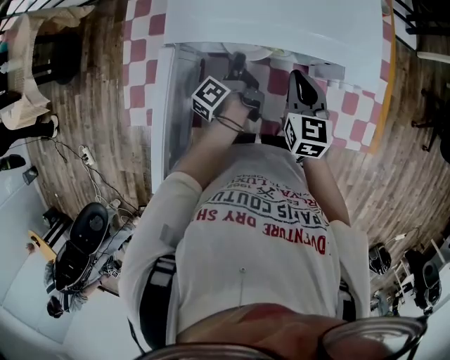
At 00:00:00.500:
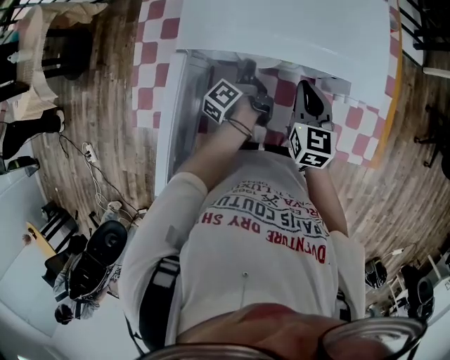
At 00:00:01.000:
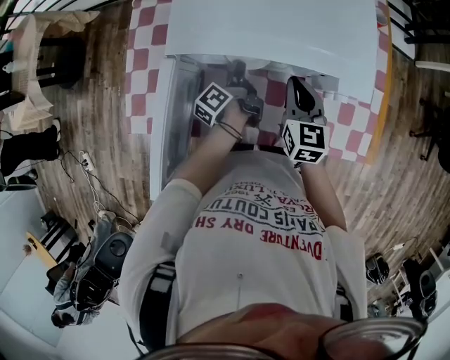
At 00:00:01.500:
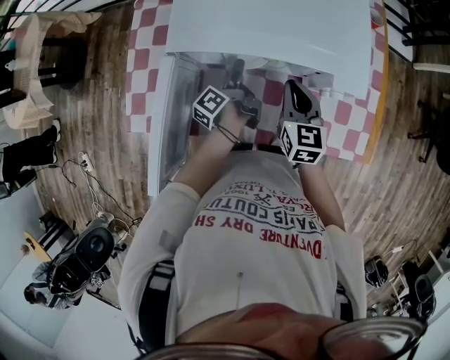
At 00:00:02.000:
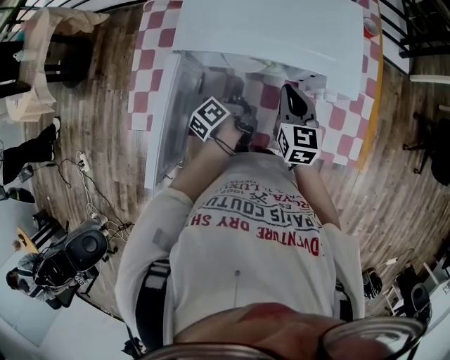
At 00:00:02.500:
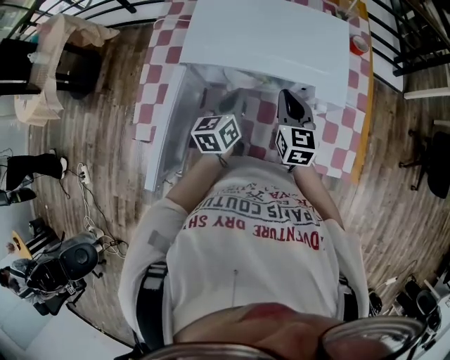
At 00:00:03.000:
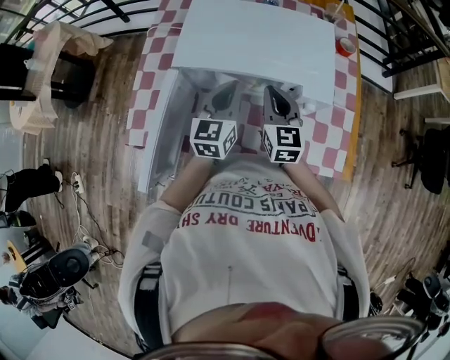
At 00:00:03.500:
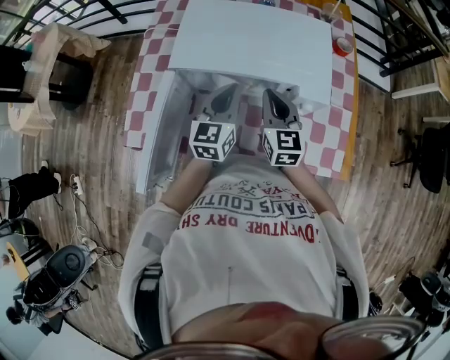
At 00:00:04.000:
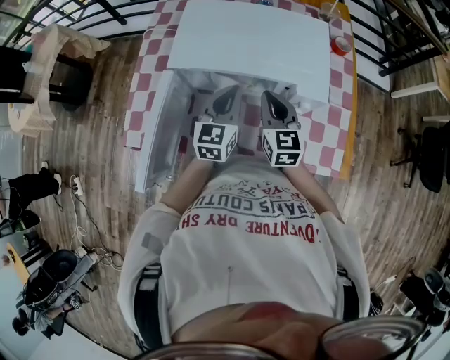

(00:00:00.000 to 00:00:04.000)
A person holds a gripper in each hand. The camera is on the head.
00:00:02.000 - 00:00:04.000: The right gripper travels upward by about 5 cm.

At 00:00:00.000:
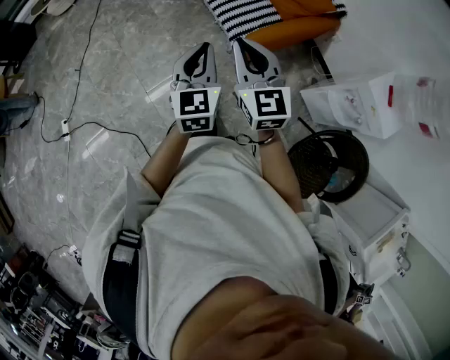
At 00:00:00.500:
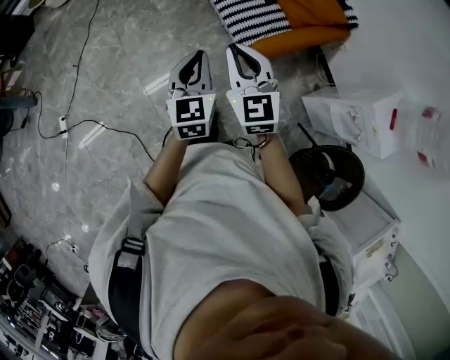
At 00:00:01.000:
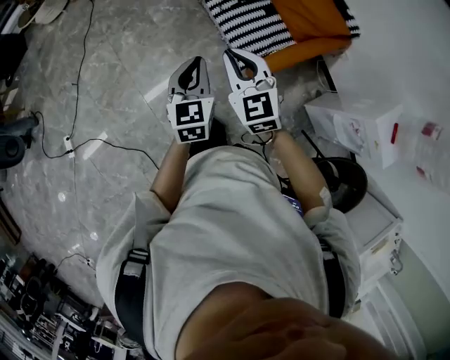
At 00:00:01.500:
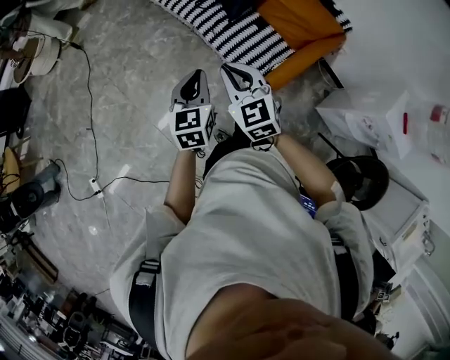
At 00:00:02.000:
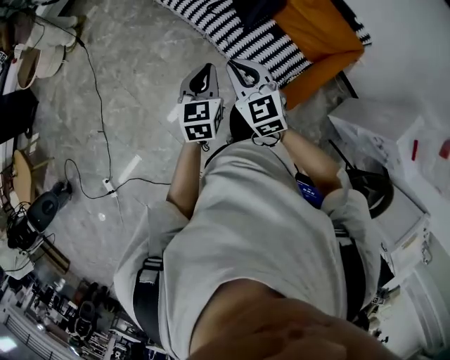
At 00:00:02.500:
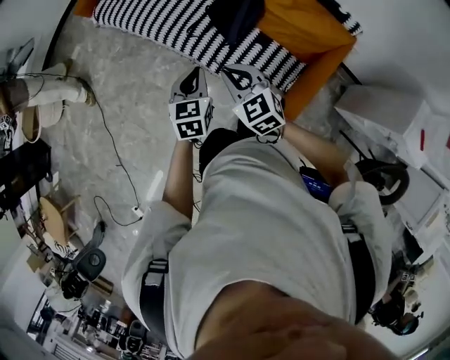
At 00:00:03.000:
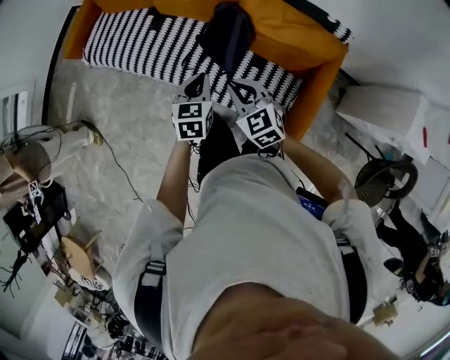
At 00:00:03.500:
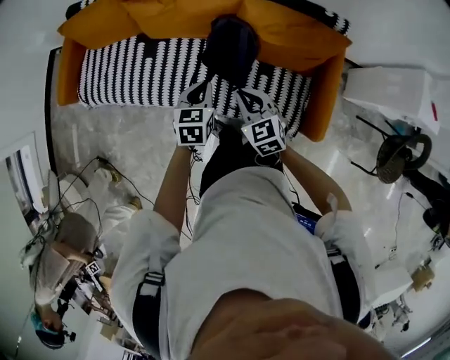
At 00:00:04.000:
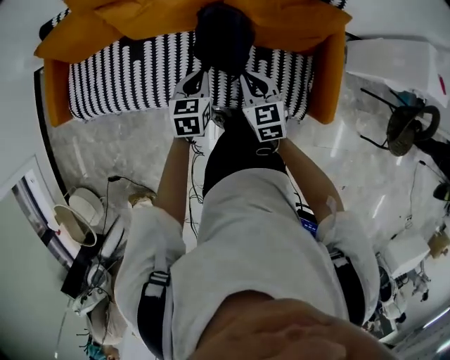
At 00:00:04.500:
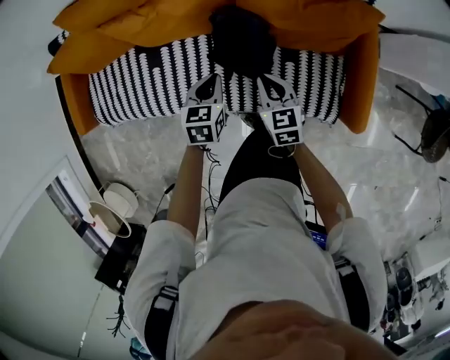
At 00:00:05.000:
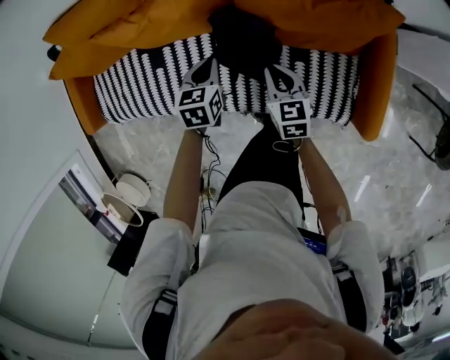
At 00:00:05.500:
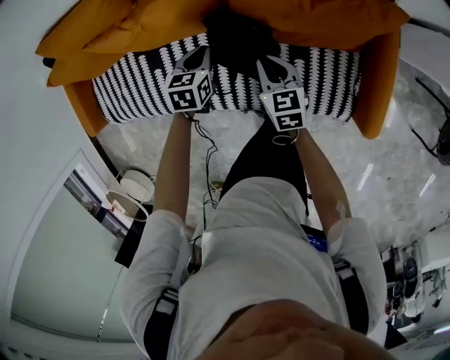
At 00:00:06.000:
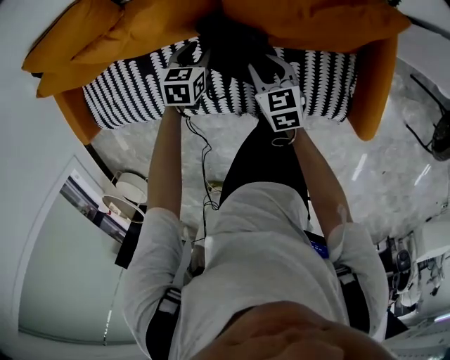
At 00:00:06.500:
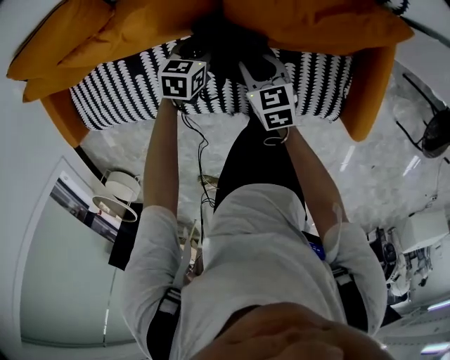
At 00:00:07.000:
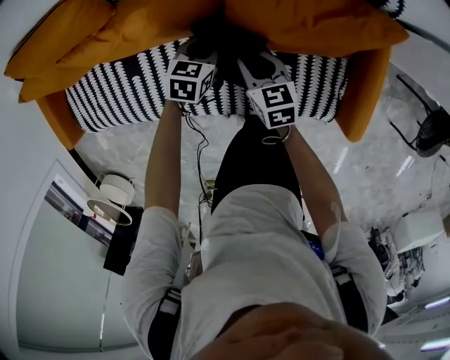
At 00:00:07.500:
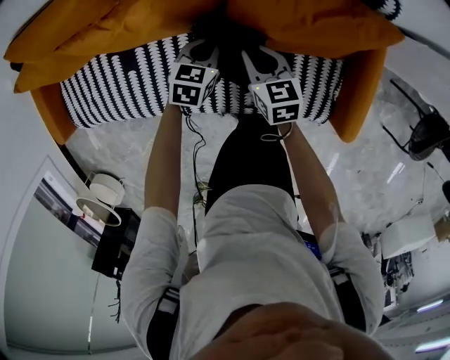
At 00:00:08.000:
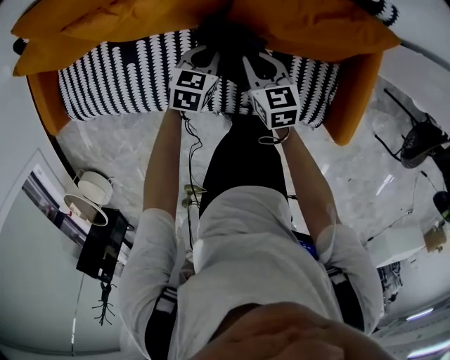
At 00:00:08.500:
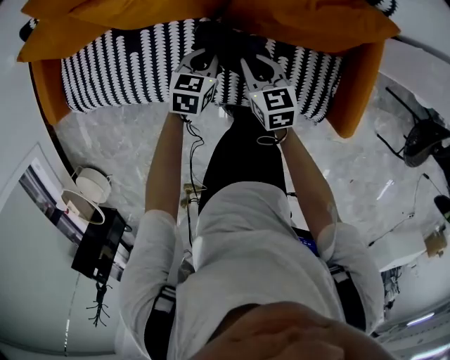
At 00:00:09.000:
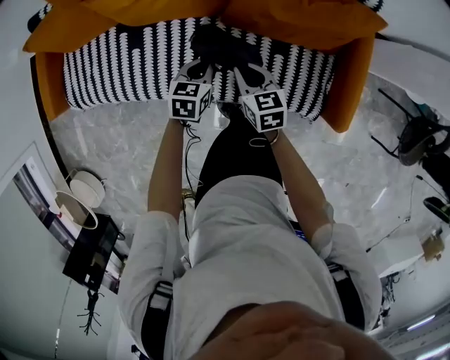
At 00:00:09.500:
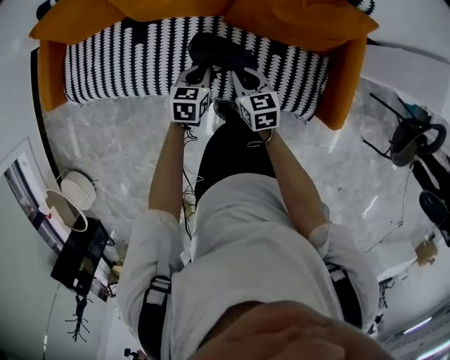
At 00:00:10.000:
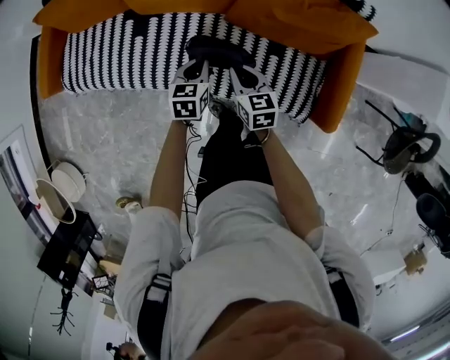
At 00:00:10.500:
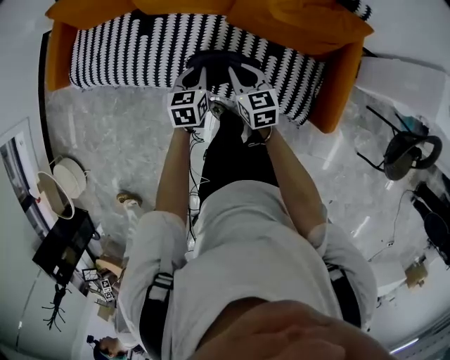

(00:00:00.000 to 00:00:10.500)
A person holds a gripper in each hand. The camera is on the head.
00:00:00.000 - 00:00:02.000: The two grippers travel together, forward, about 50 cm. The left gripper changes its angle by roughly 20 degrees.
00:00:02.000 - 00:00:04.000: The two grippers travel together, some 40 cm. The right gripper changes its angle by roughly 60 degrees. The left gripper rotates roughly 50 degrees.
00:00:04.000 - 00:00:06.500: The two grippers go about 35 cm forward and downward. The left gripper swivels some 20 degrees, and opens up. The right gripper turns by roughly 20 degrees, and opens its fingers.
00:00:06.500 - 00:00:08.500: Both grippers move backward and upward, approximately 15 cm. The left gripper closes.
00:00:08.500 - 00:00:10.500: Both grippers move backward and upward, roughly 20 cm. The left gripper rotates roughly 30 degrees.

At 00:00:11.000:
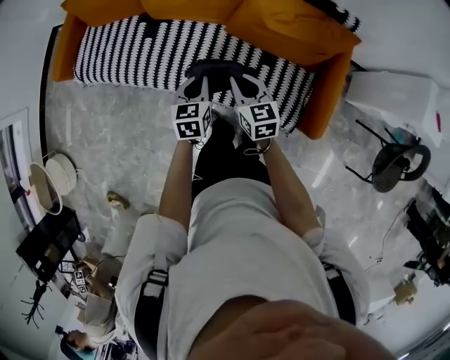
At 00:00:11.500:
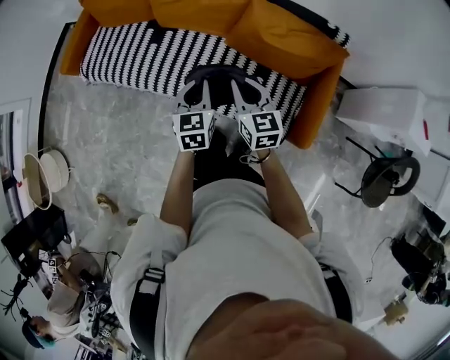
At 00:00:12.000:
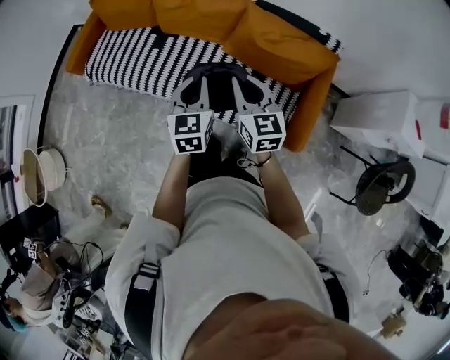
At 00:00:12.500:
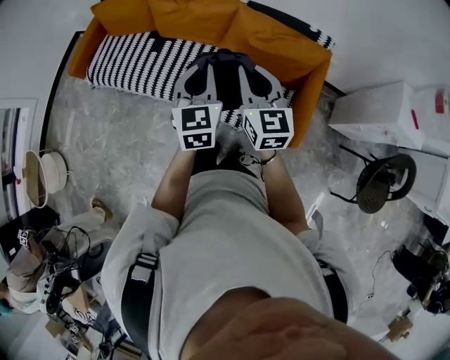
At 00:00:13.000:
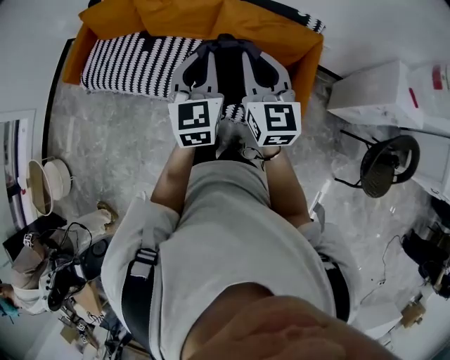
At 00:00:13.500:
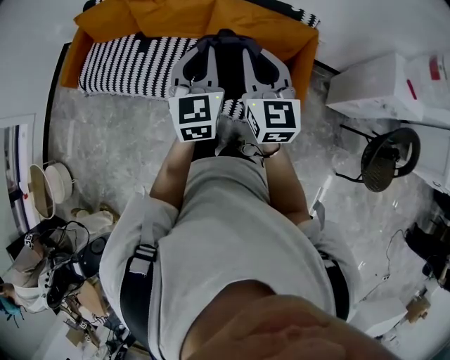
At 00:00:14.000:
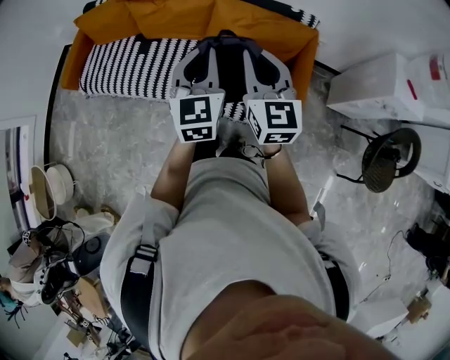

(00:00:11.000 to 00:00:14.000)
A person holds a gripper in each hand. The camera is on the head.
00:00:11.000 - 00:00:12.500: Both grippers move upward and backward, some 30 cm. The left gripper rotates roughly 30 degrees; the right gripper turns by approximately 20 degrees.
00:00:12.500 - 00:00:14.000: Both grippers travel together to the right, approximately 5 cm.

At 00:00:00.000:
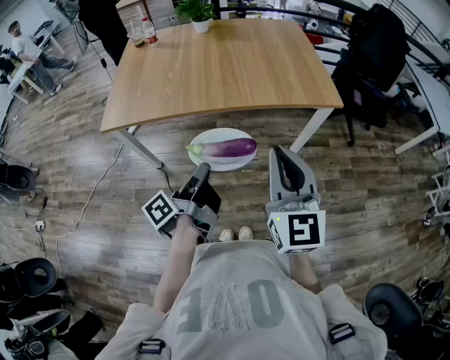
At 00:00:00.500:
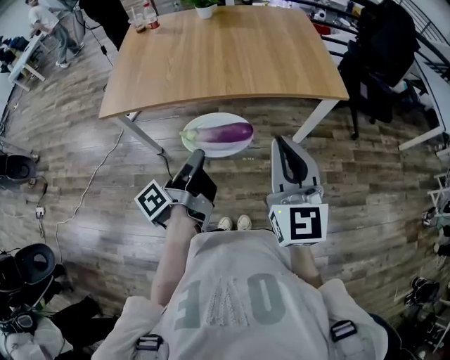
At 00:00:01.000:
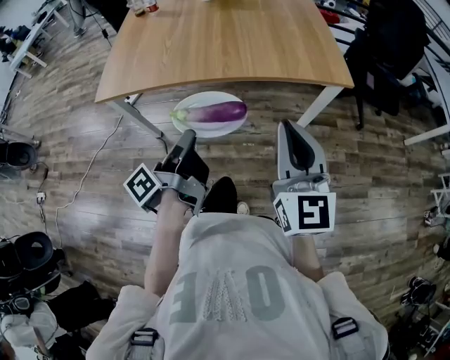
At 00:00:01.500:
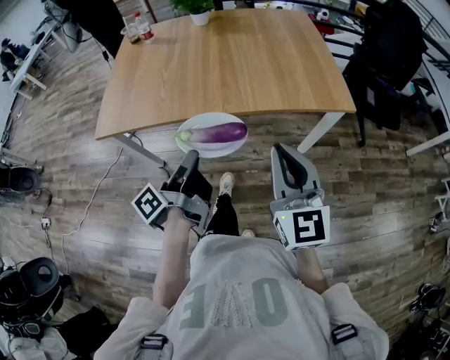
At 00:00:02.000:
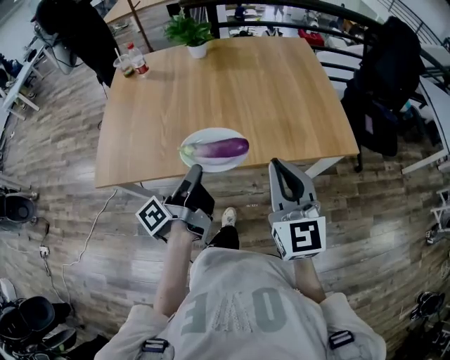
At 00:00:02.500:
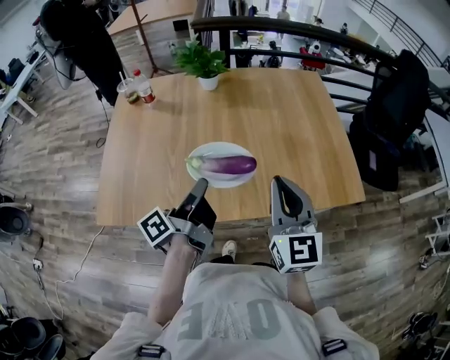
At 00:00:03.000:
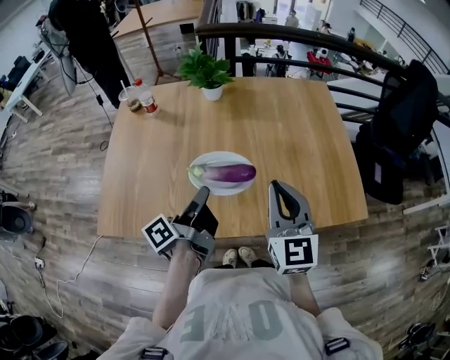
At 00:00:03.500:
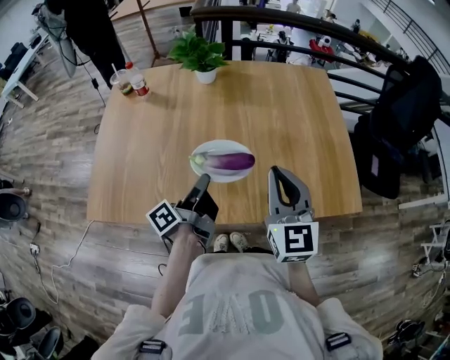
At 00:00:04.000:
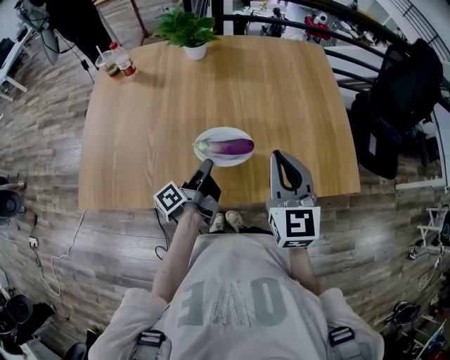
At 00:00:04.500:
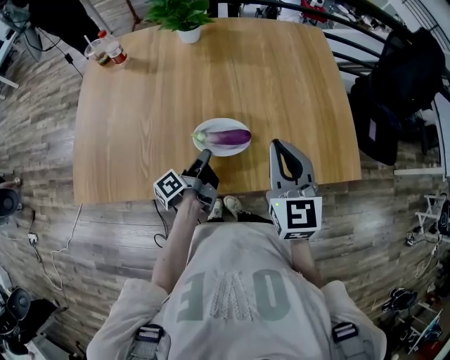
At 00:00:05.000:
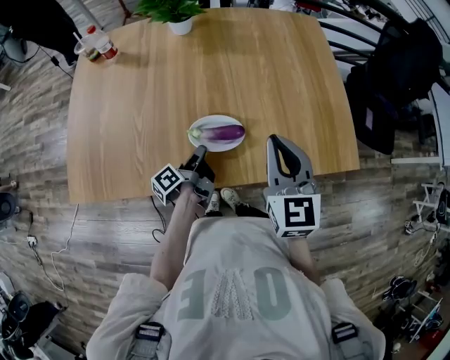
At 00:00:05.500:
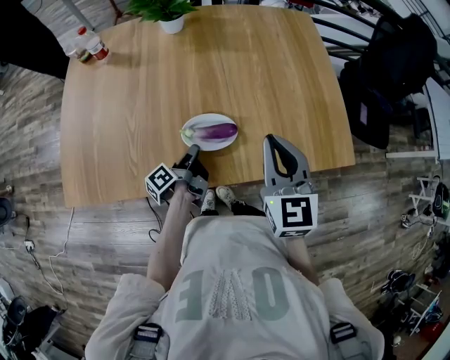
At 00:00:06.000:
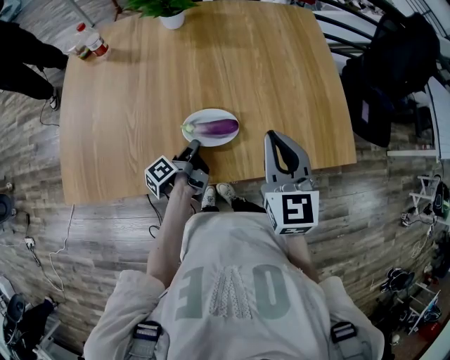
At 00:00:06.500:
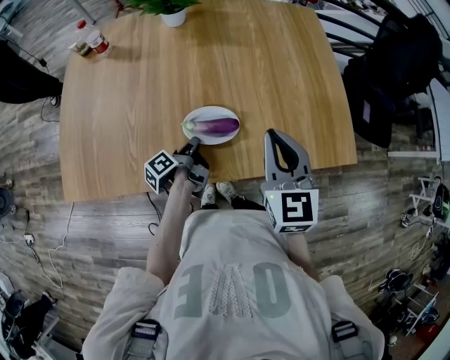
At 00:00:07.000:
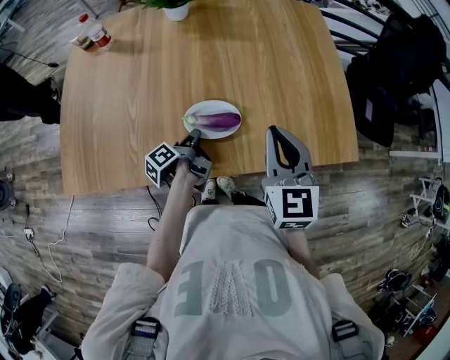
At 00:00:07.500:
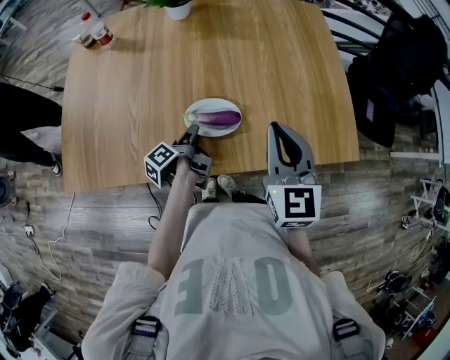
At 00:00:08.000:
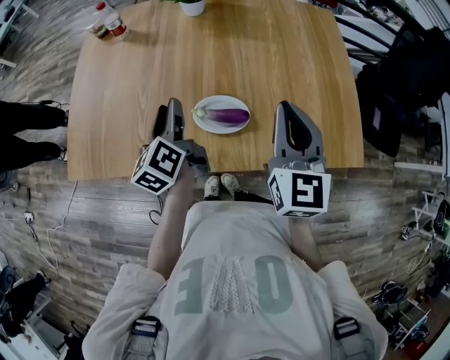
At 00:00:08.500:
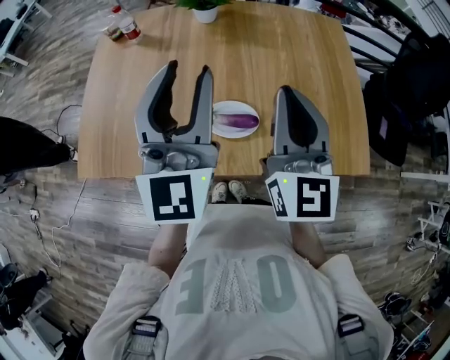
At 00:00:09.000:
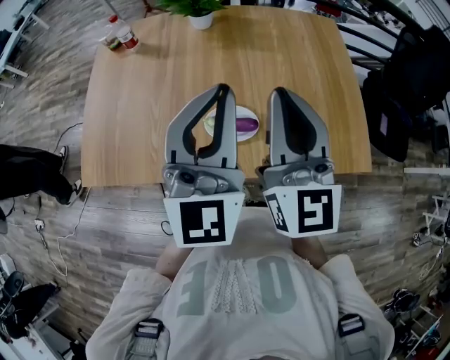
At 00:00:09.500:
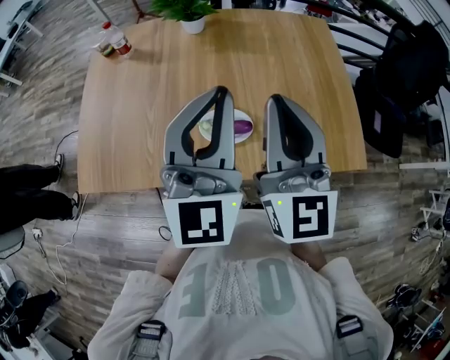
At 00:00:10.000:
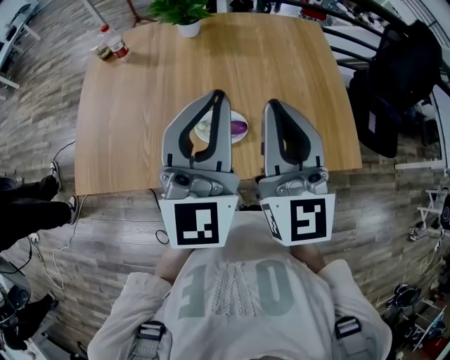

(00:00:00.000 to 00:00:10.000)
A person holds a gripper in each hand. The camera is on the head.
00:00:00.000 - 00:00:02.000: The right gripper ends up about 25 cm from where it was.
00:00:02.000 - 00:00:04.000: The right gripper moves roughly 20 cm.
00:00:06.000 - 00:00:08.000: The right gripper ends up approximately 5 cm from where it was.
00:00:08.000 - 00:00:10.000: The right gripper heads upward, covering some 10 cm.
